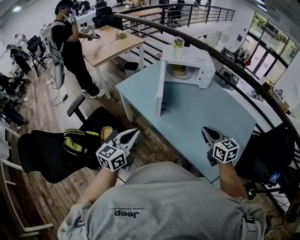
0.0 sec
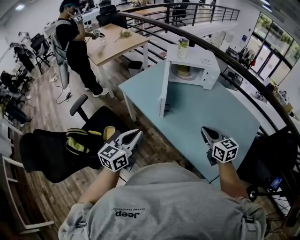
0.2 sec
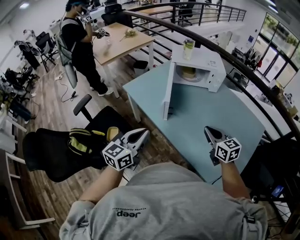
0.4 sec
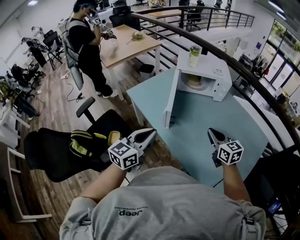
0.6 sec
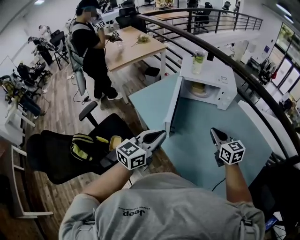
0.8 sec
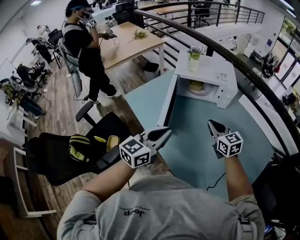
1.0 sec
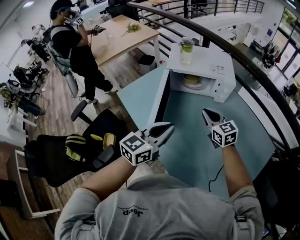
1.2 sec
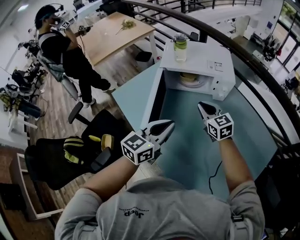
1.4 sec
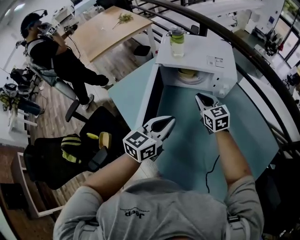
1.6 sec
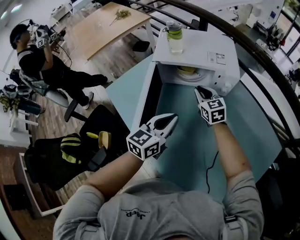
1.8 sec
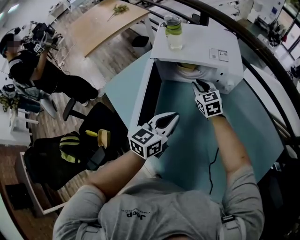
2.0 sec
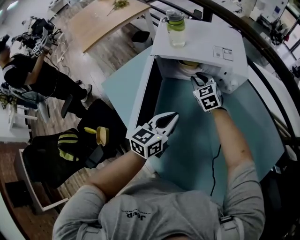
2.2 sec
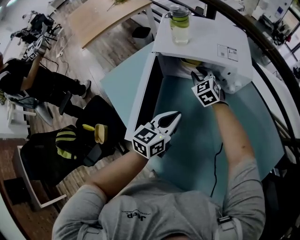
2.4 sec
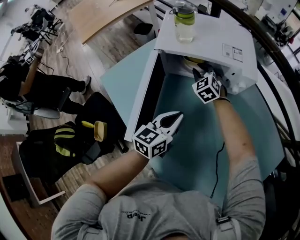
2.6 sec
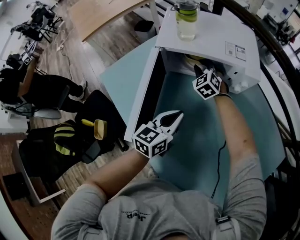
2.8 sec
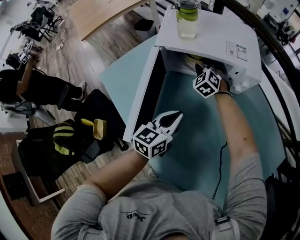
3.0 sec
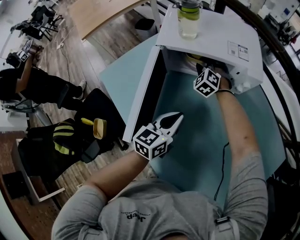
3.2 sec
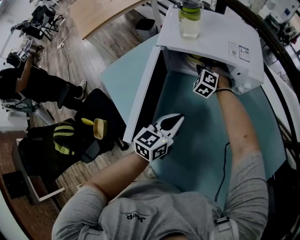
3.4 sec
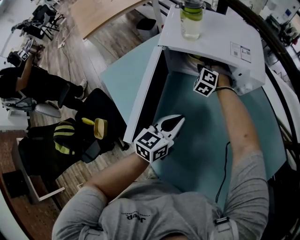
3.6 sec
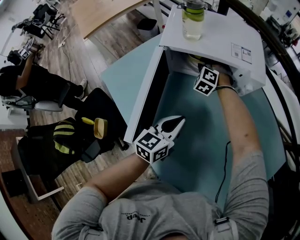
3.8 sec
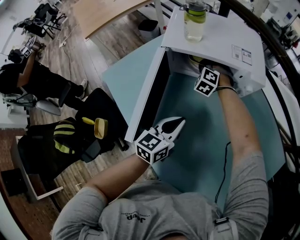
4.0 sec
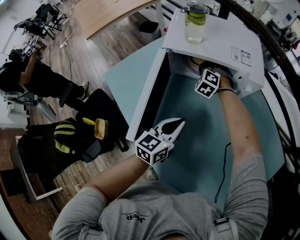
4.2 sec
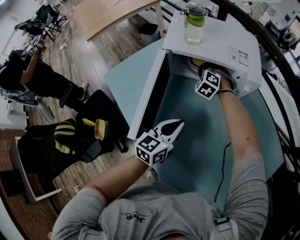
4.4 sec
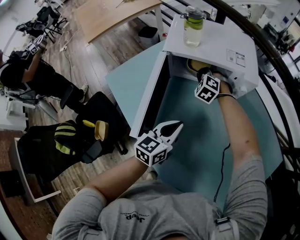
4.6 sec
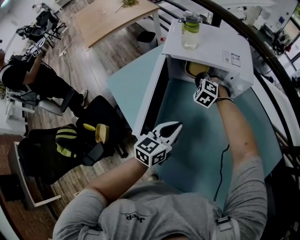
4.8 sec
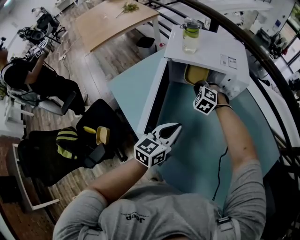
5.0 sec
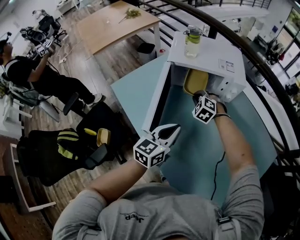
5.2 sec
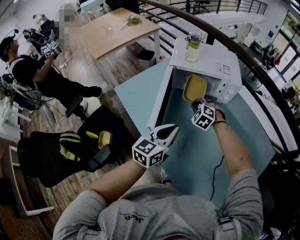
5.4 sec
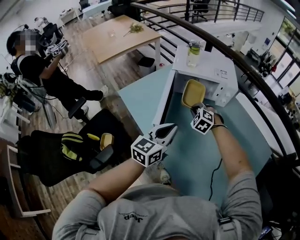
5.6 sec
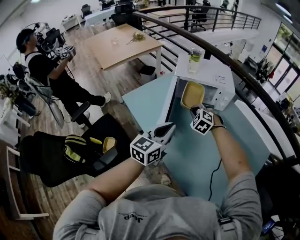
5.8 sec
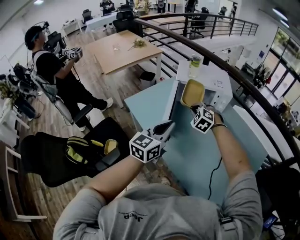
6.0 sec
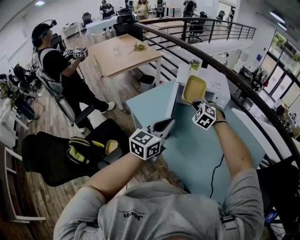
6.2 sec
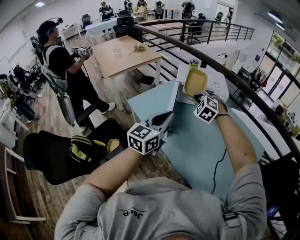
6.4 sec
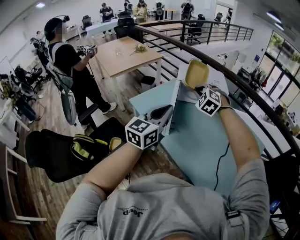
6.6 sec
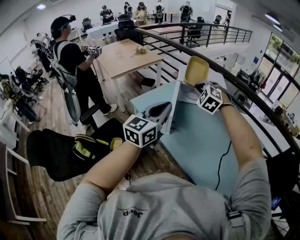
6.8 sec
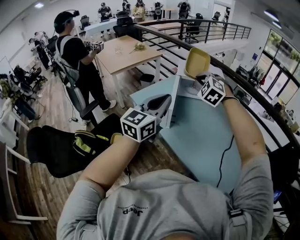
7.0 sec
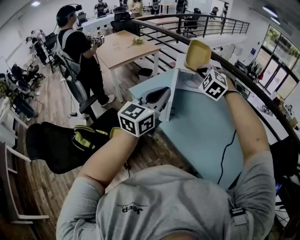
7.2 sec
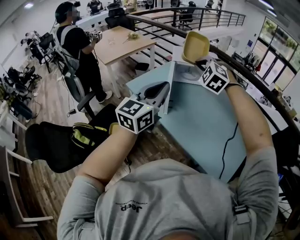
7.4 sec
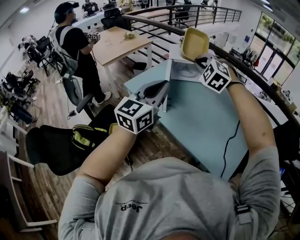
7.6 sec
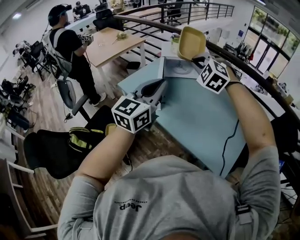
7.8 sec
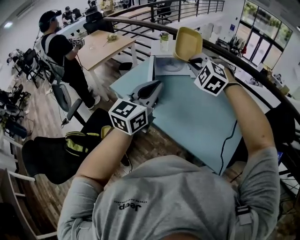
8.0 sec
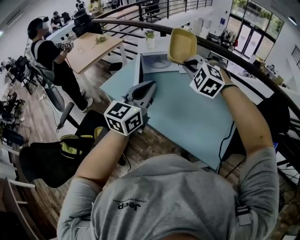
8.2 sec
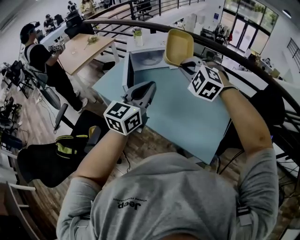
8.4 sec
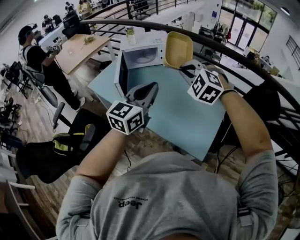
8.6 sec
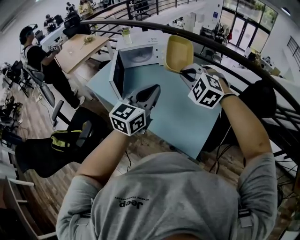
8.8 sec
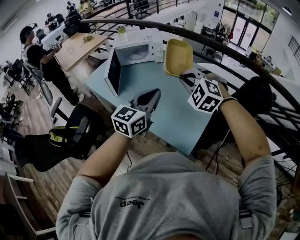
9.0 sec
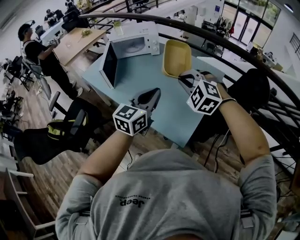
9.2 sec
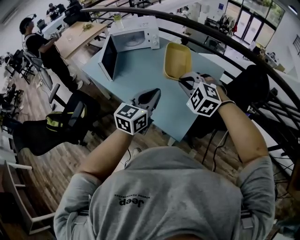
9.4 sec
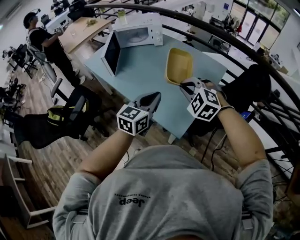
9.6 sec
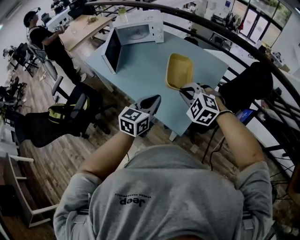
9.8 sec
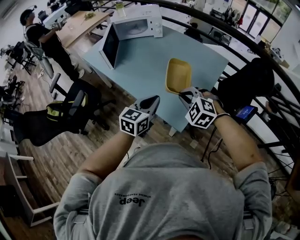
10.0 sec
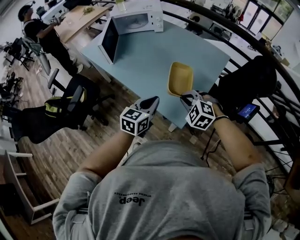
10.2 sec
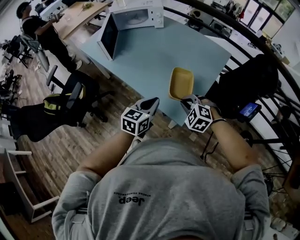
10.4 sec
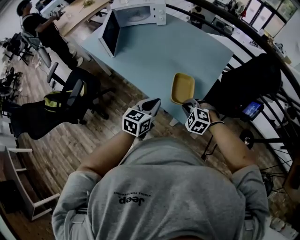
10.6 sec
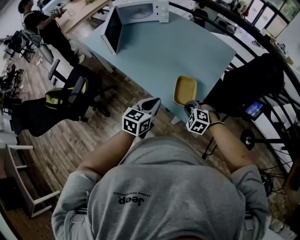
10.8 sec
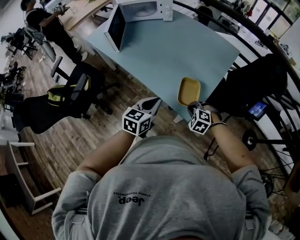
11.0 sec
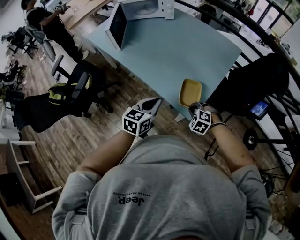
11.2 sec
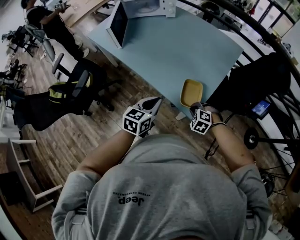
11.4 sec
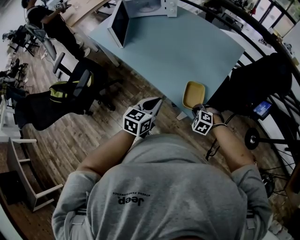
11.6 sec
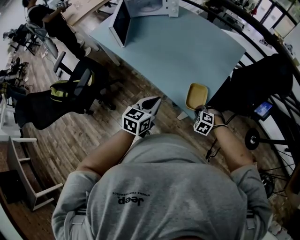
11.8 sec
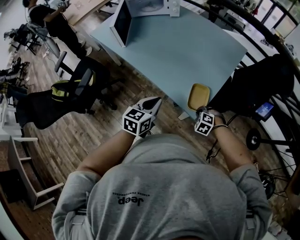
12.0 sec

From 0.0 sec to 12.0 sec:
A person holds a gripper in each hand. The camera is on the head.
From 0.0 sec to 1.6 sec: The right gripper heads forward, covering some 40 cm; the left gripper goes approximately 40 cm forward and to the right.
From 1.6 sec to 3.0 sec: The right gripper moves forward and downward, approximately 20 cm, and rotates about 40 degrees. The left gripper shifts roughly 15 cm downward and forward.
From 4.4 sec to 6.0 sec: The right gripper shifts approximately 35 cm backward and upward. Meanwhile the left gripper goes some 30 cm upward, backward and to the left, and rotates roughly 20 degrees.
From 6.0 sec to 7.6 sec: The right gripper is displaced upward and backward by some 25 cm; the left gripper heads backward and upward, covering about 20 cm.
From 7.6 sec to 9.0 sec: The left gripper goes some 35 cm to the right; the right gripper is displaced to the right and backward by approximately 40 cm.
From 9.0 sec to 10.4 sec: Both grippers move downward and backward, about 25 cm. The right gripper turns by approximately 20 degrees. The left gripper rotates roughly 20 degrees.
From 10.4 sec to 12.0 sec: The left gripper shifts about 5 cm to the left. The right gripper moves downward, some 20 cm.

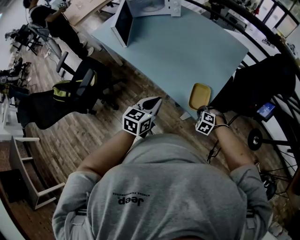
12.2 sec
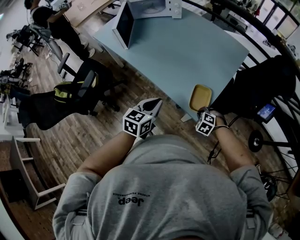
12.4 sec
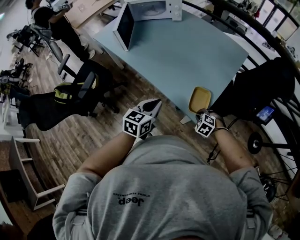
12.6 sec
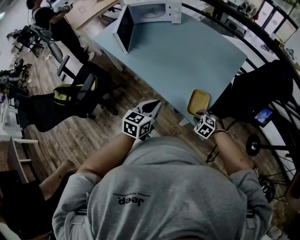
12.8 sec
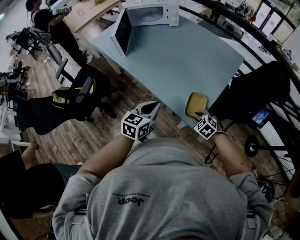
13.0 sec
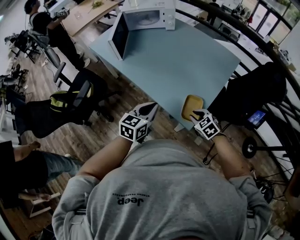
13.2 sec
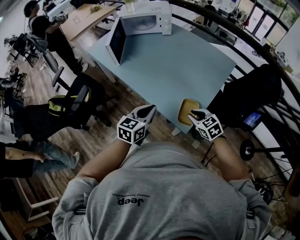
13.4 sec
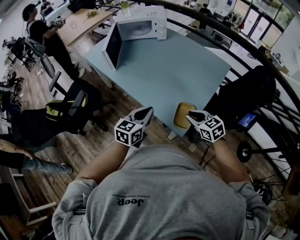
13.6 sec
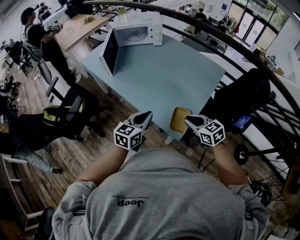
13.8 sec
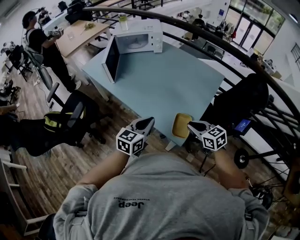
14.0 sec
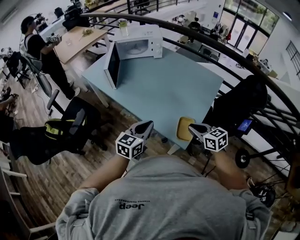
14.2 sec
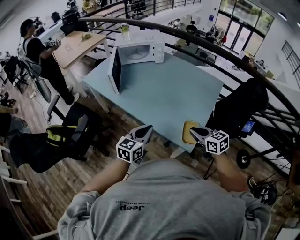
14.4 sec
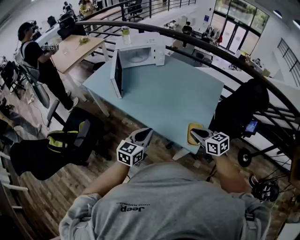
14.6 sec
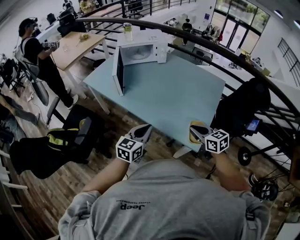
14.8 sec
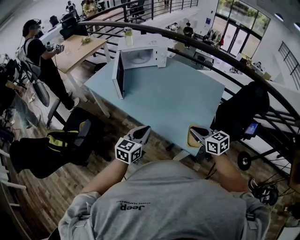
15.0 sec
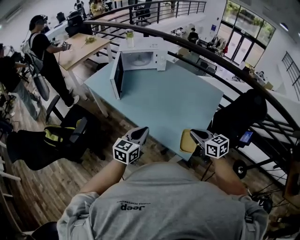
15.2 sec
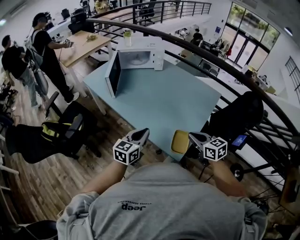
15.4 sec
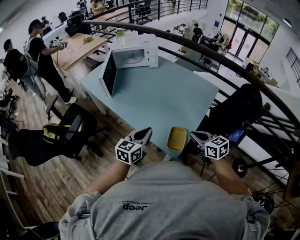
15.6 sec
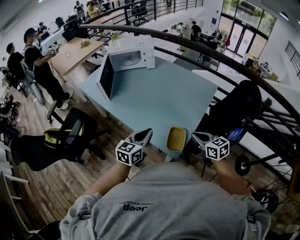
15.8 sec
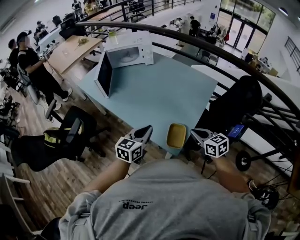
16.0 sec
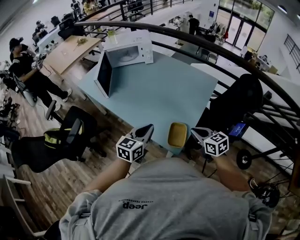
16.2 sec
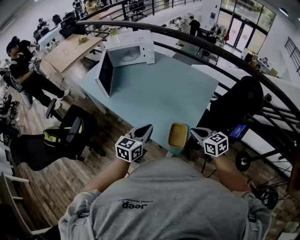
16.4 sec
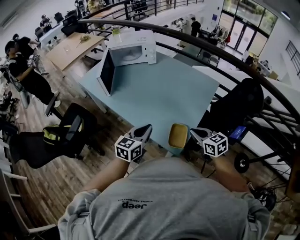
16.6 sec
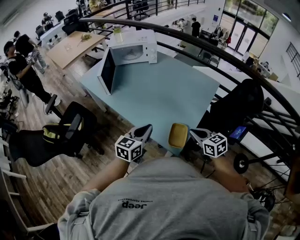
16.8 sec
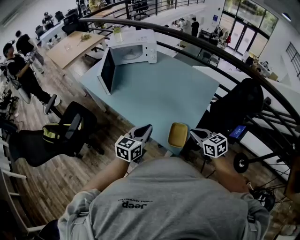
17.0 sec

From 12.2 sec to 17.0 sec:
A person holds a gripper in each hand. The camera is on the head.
From 12.2 sec to 13.8 sec: The right gripper travels upward by about 20 cm, and points its fingers some 40 degrees further upward; the left gripper is displaced upward by some 5 cm.
From 13.8 sec to 15.4 sec: The right gripper moves some 10 cm to the left and comes back. Meanwhile the left gripper reaches some 15 cm to the left, then returns.
From 15.4 sec to 17.0 sec: The left gripper shifts roughly 5 cm to the right, while the right gripper changes place by roughly 5 cm.

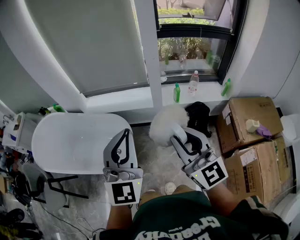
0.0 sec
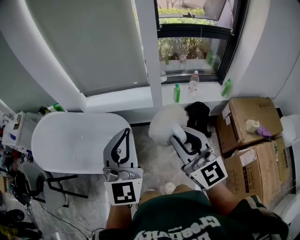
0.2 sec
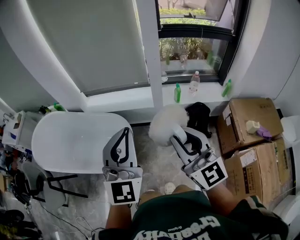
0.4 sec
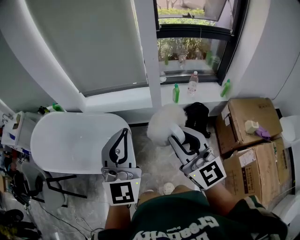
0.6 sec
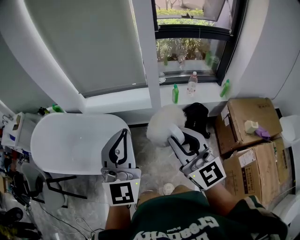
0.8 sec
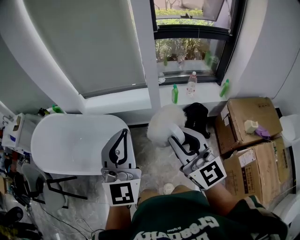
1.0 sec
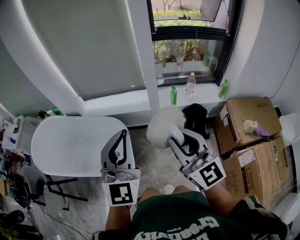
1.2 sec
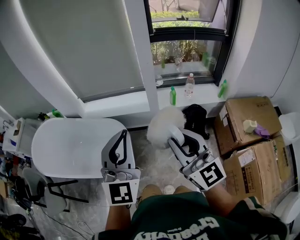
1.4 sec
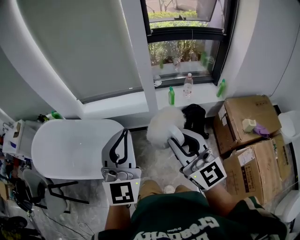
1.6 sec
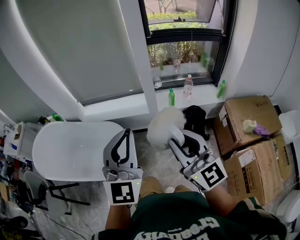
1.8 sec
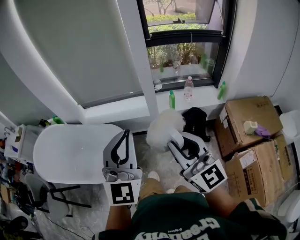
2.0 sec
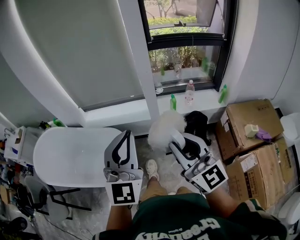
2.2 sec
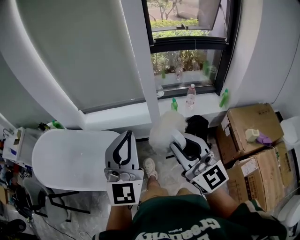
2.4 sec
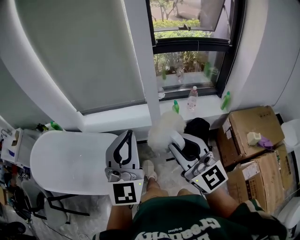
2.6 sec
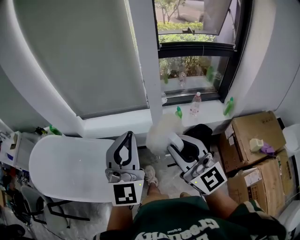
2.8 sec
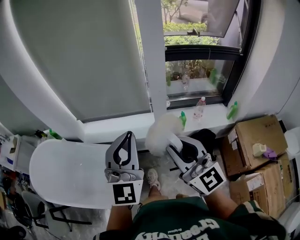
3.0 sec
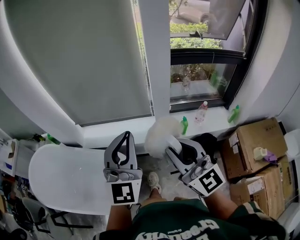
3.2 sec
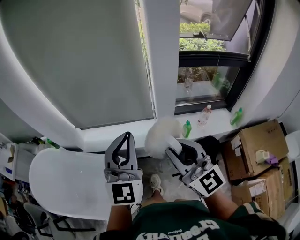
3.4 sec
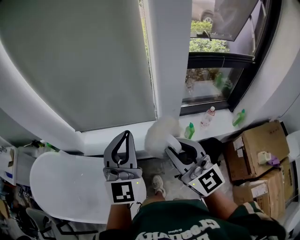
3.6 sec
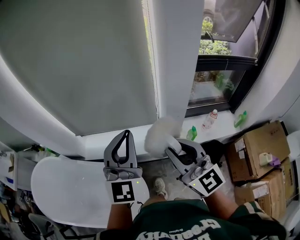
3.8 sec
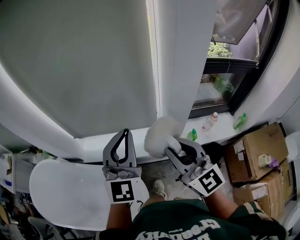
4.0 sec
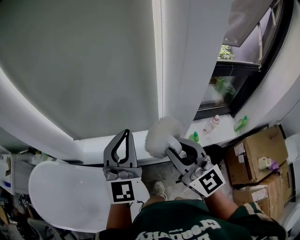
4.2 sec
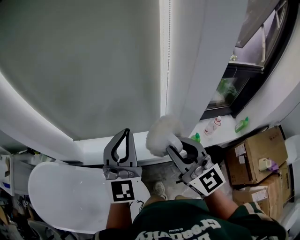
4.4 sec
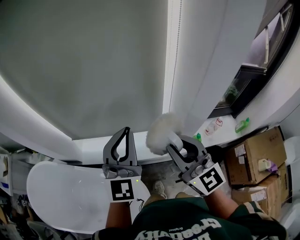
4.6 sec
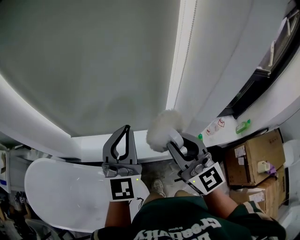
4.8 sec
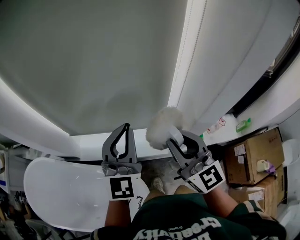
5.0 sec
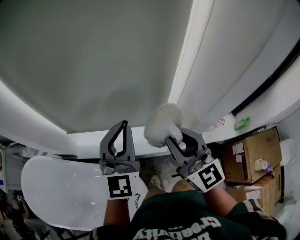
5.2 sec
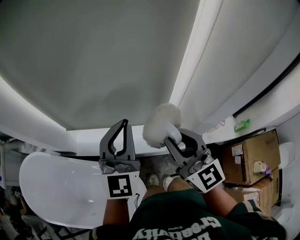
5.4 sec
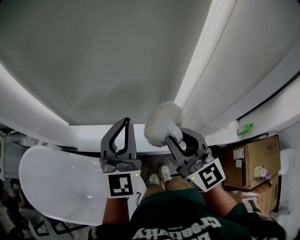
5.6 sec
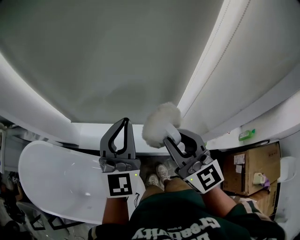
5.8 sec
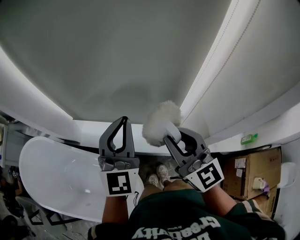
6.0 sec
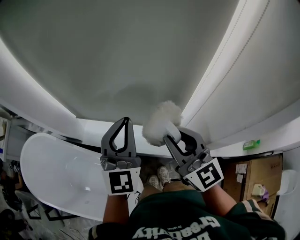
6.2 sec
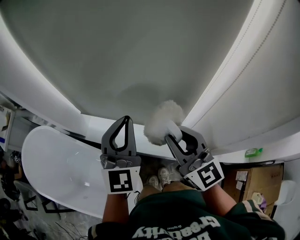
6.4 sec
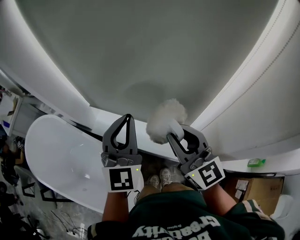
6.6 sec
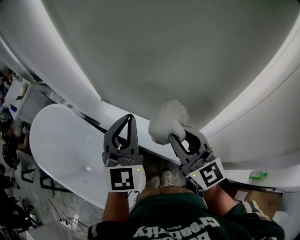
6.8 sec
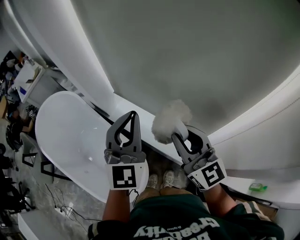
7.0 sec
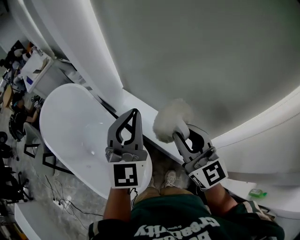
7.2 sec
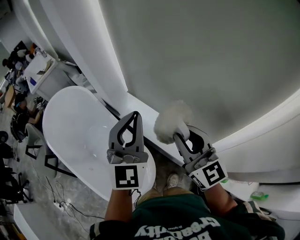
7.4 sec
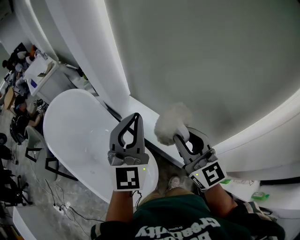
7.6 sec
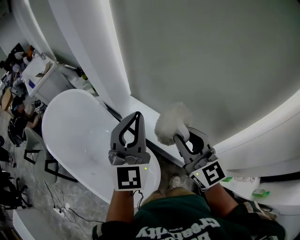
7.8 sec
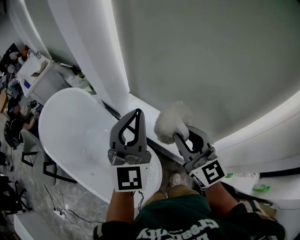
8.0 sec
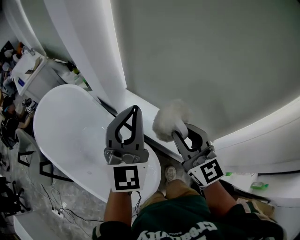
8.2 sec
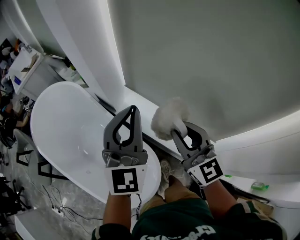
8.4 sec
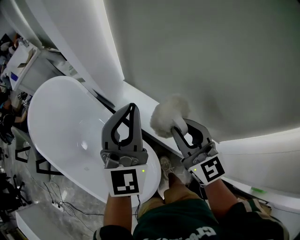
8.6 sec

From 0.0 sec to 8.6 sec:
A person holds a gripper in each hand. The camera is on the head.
From 0.0 sec to 1.4 sec: The grippers stay close to where they were, moving slightly.
From 1.4 sec to 2.8 sec: The two grippers go roughly 15 cm forward.
From 2.8 sec to 4.4 sec: Both grippers travel together forward, approximately 35 cm.
From 4.4 sec to 5.8 sec: Both grippers travel together forward, about 10 cm.
From 5.8 sec to 7.2 sec: The left gripper ends up some 15 cm from where it was, and turns by approximately 30 degrees. The right gripper moves some 15 cm, and swivels about 30 degrees.
From 7.2 sec to 8.6 sec: The left gripper goes approximately 15 cm forward, to the left and downward. Meanwhile the right gripper goes some 15 cm forward, downward and to the left.
